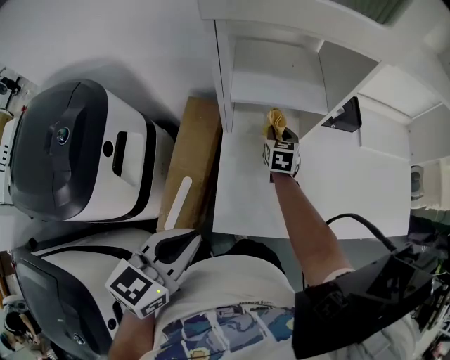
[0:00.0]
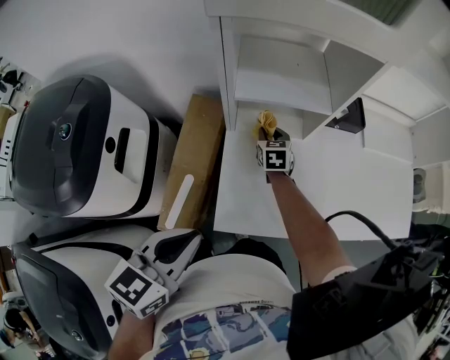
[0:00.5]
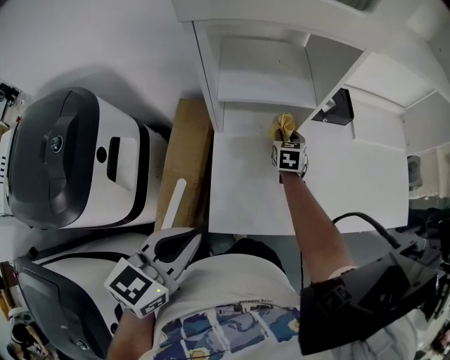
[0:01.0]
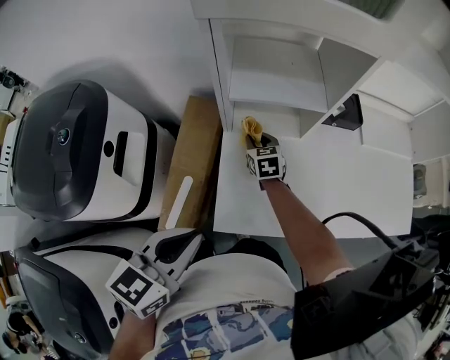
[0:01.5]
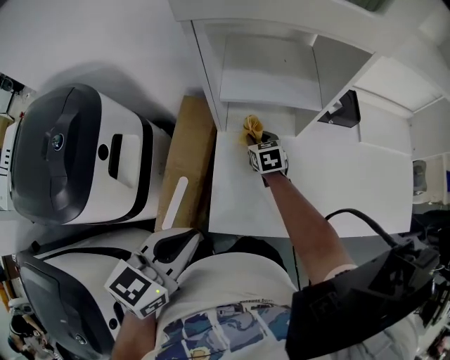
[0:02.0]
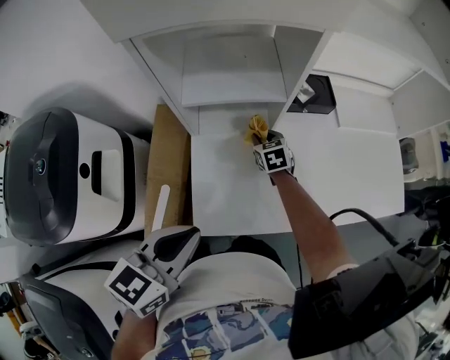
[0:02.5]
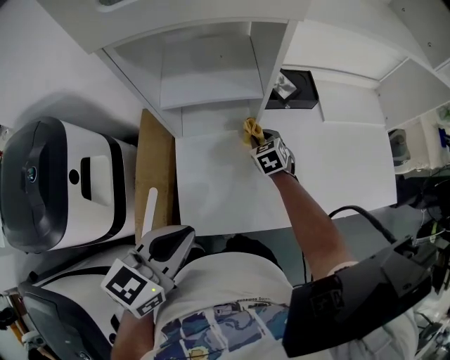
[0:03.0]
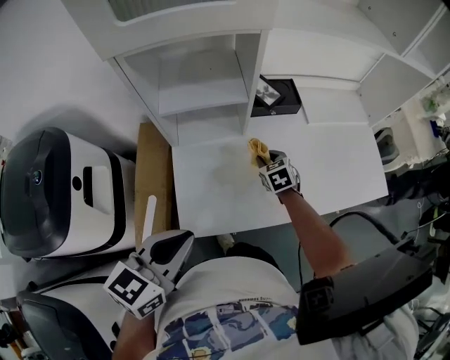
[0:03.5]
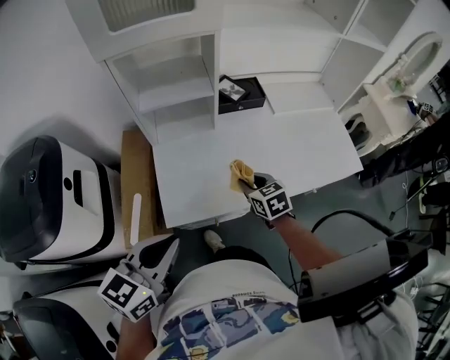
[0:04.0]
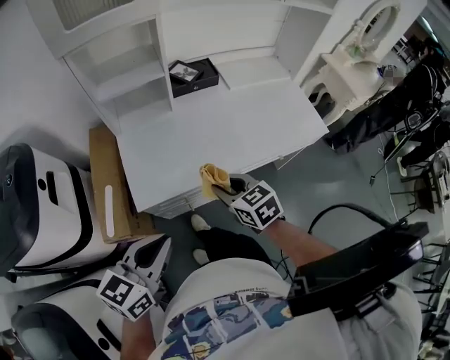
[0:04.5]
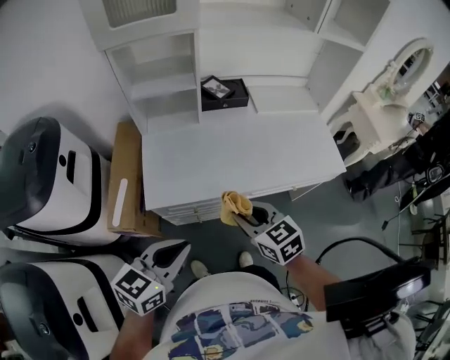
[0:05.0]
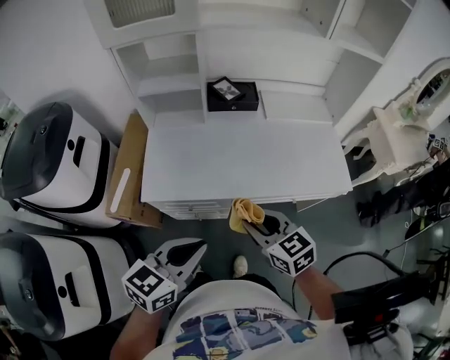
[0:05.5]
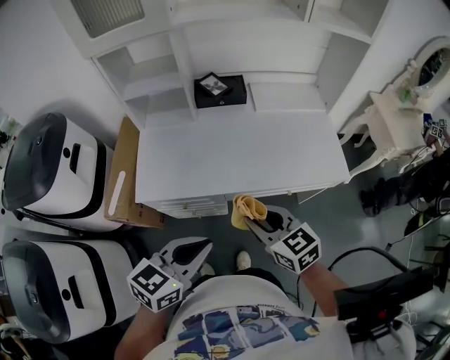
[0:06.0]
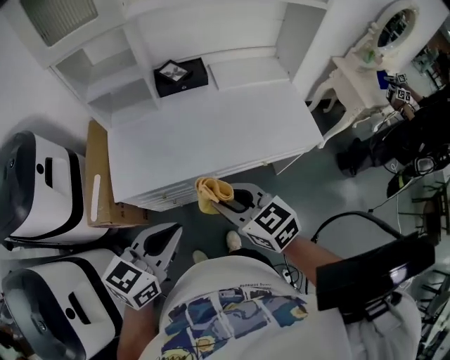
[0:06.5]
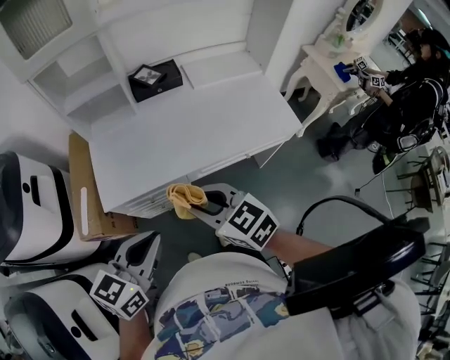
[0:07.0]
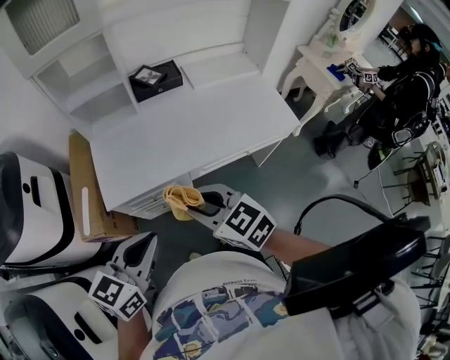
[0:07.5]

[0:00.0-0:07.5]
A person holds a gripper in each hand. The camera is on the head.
0:00.0 to 0:02.0: The right gripper moves left and right over about 15 cm, changing direction 2 times, and swivels approximately 20 degrees.
0:02.0 to 0:04.0: The right gripper travels to the right, backward and upward by about 35 cm, while the left gripper travels to the right and backward by roughly 15 cm.
0:04.0 to 0:05.5: The right gripper heads backward, to the right and upward, covering approximately 25 cm, and turns by roughly 20 degrees; the left gripper goes roughly 20 cm to the right.
0:05.5 to 0:07.5: The right gripper is displaced to the left and backward by about 10 cm. Meanwhile the left gripper goes roughly 5 cm to the left.

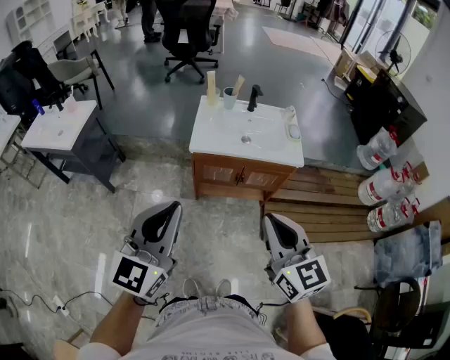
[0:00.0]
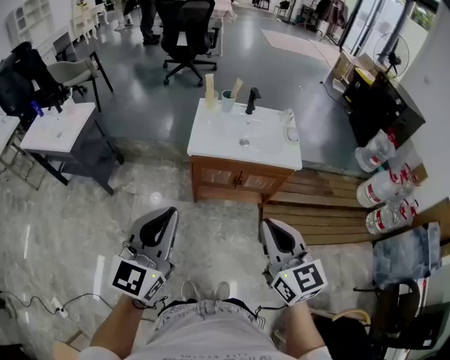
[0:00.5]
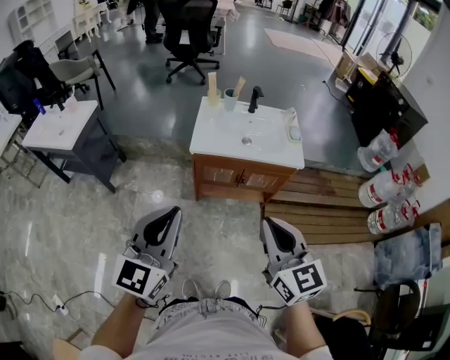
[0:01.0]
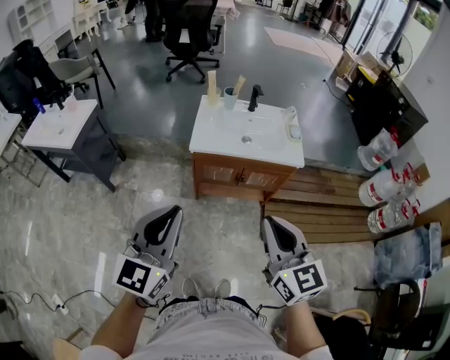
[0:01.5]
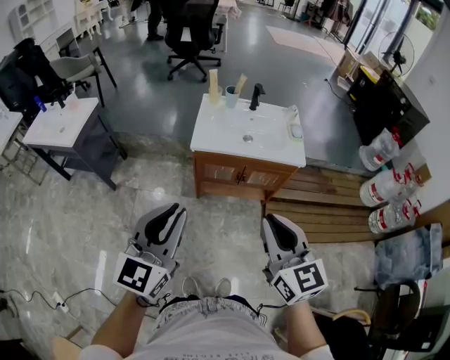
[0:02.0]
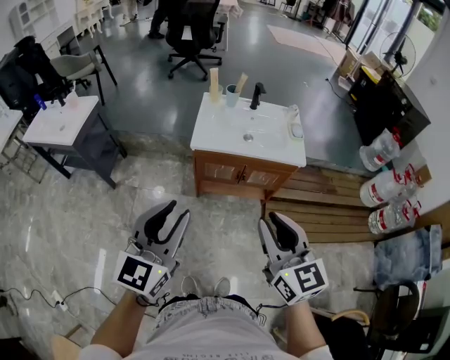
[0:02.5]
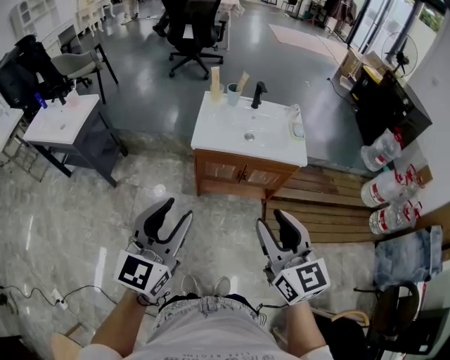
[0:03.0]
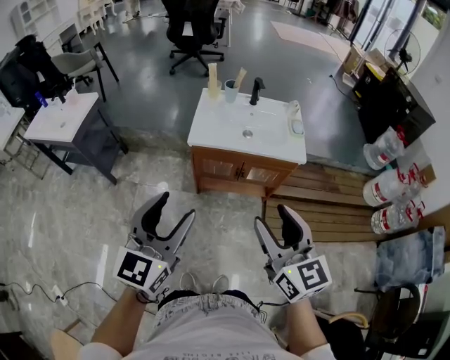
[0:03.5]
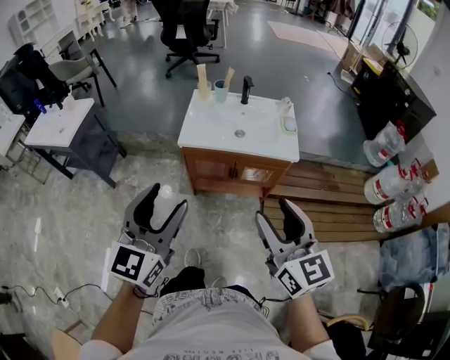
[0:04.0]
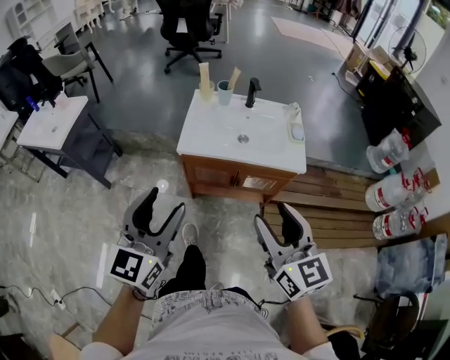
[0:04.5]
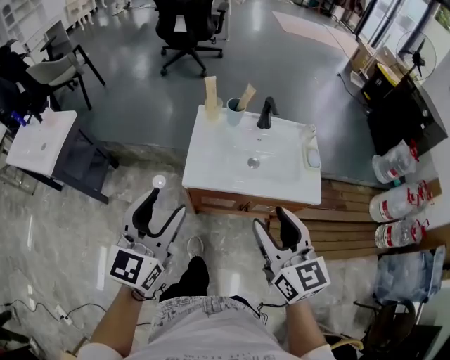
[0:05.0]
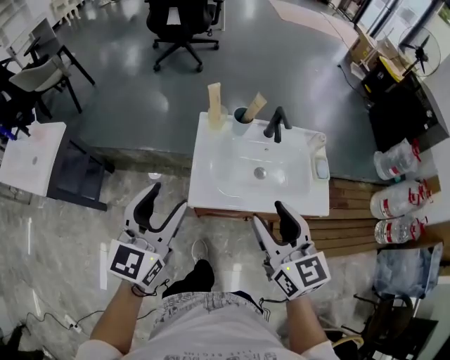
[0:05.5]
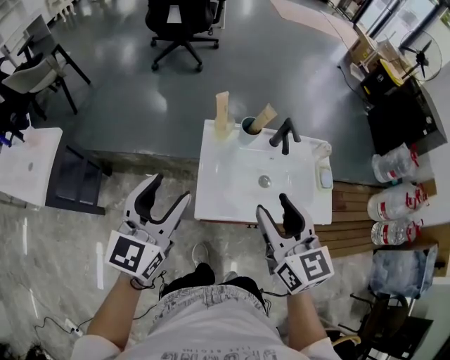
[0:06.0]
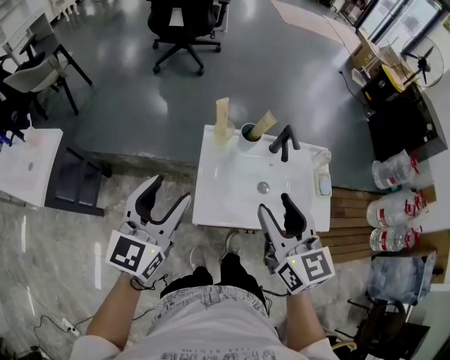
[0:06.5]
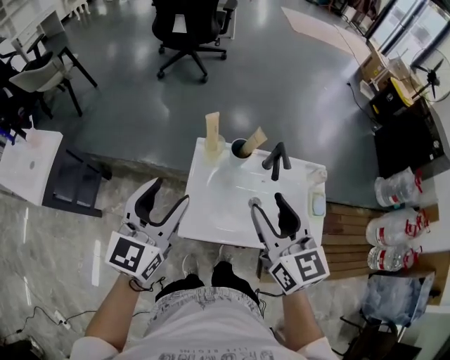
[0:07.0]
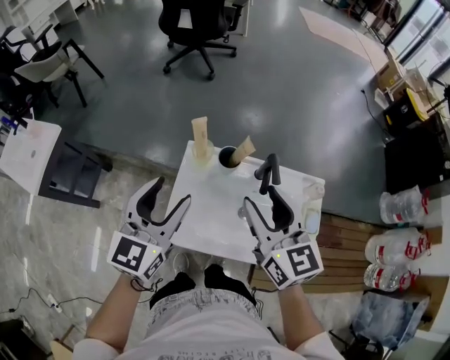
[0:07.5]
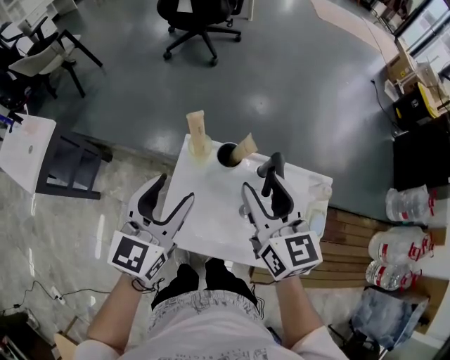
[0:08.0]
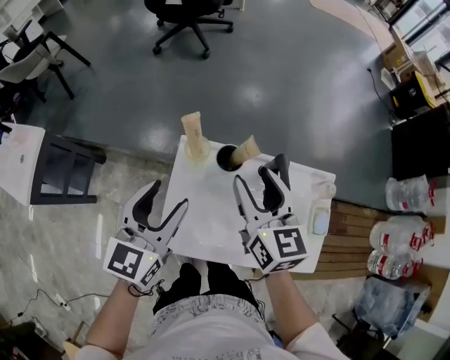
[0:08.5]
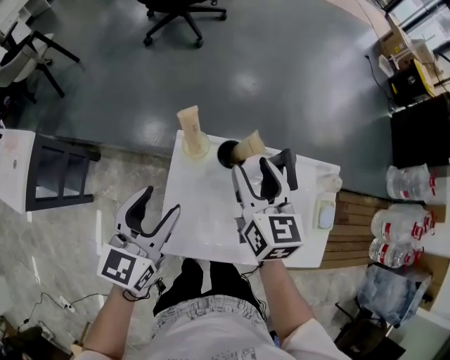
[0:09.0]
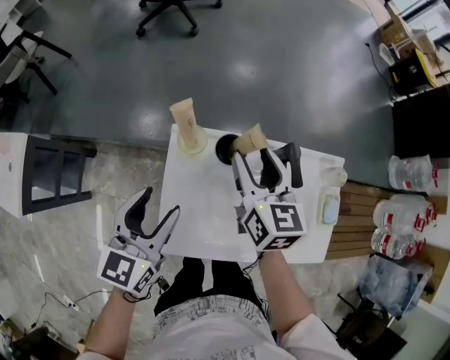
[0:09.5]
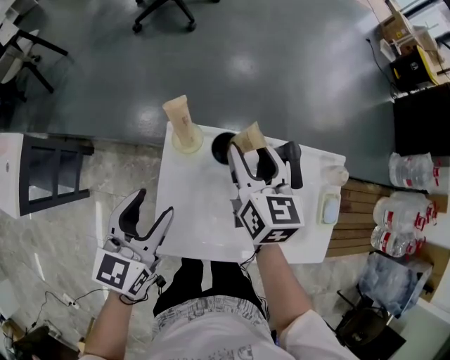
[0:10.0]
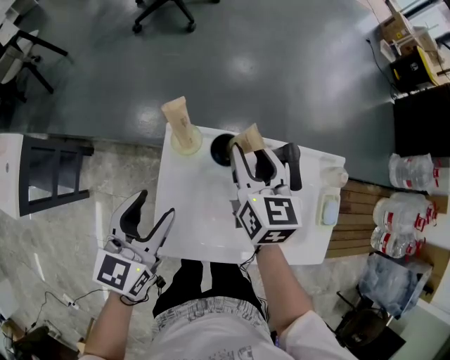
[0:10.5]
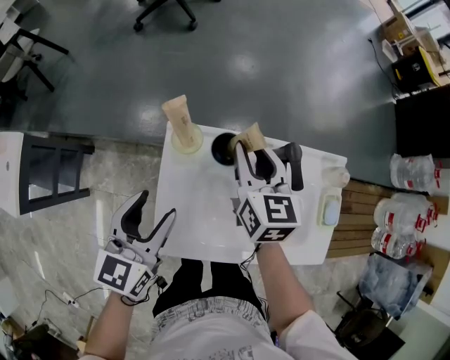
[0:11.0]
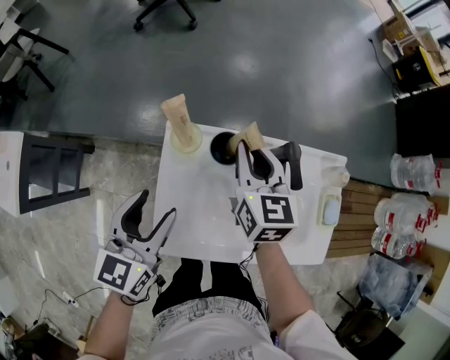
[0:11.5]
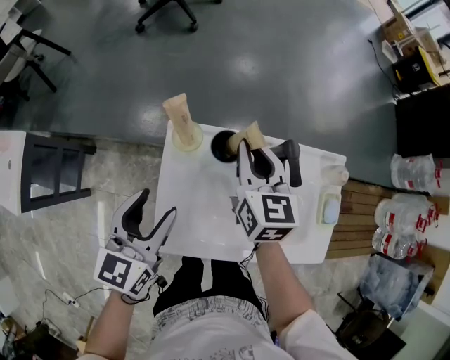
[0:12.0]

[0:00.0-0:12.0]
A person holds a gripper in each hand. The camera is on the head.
0:00.0 to 0:02.0: The grippers stay close to where they were, moving slightly.
0:02.0 to 0:04.0: Both grippers travel together to the right, roughly 5 cm. The right gripper opens up, while the left gripper opens up.
0:04.0 to 0:06.0: Both grippers are carried forward, approximately 40 cm.
0:06.0 to 0:08.0: The left gripper is displaced to the right and forward by approximately 20 cm. The right gripper is displaced forward and to the right by approximately 20 cm.
0:08.0 to 0:10.0: The right gripper shifts roughly 15 cm downward and forward, while the left gripper moves downward, roughly 10 cm.
0:10.0 to 0:12.0: The right gripper closes its fingers.

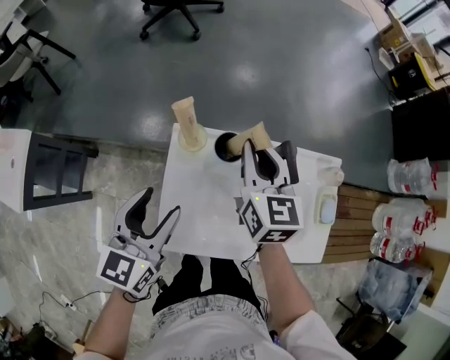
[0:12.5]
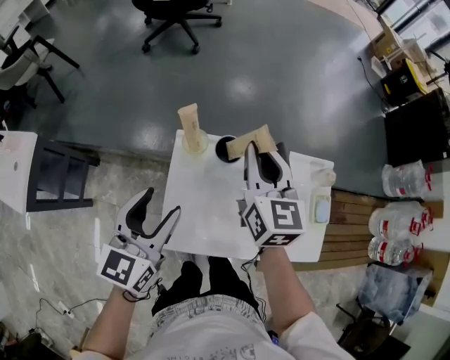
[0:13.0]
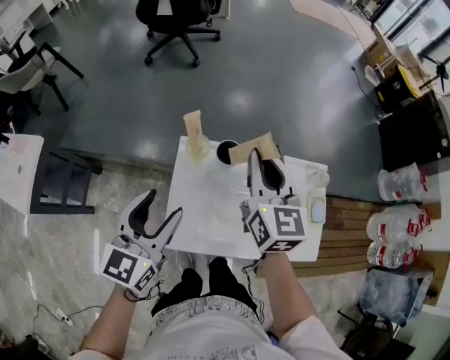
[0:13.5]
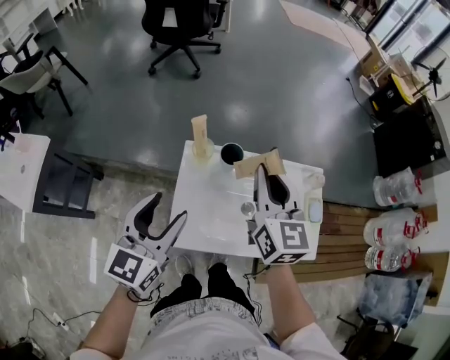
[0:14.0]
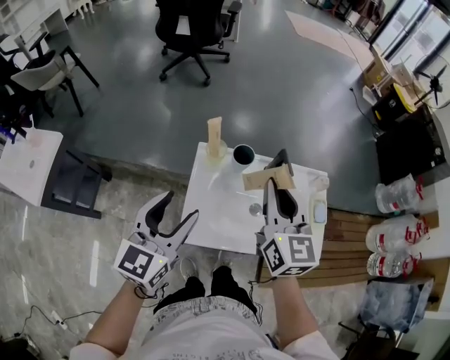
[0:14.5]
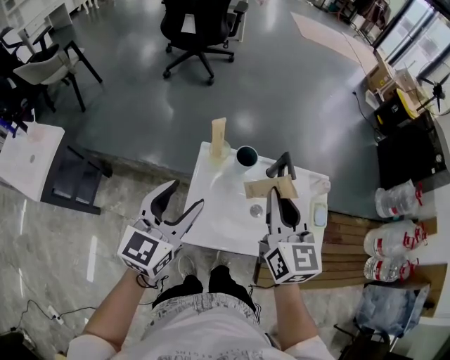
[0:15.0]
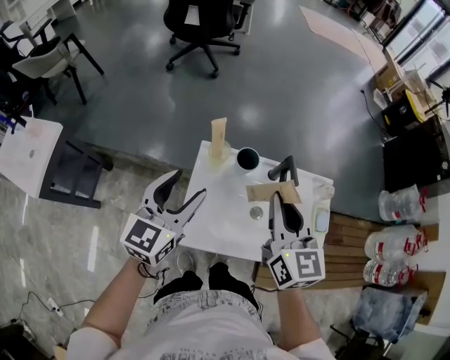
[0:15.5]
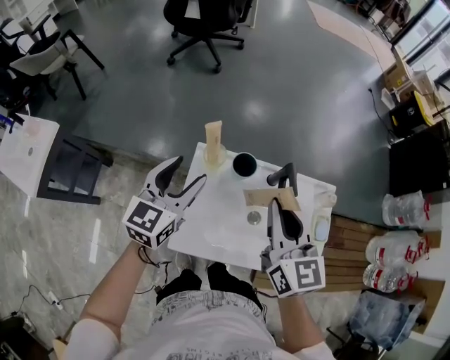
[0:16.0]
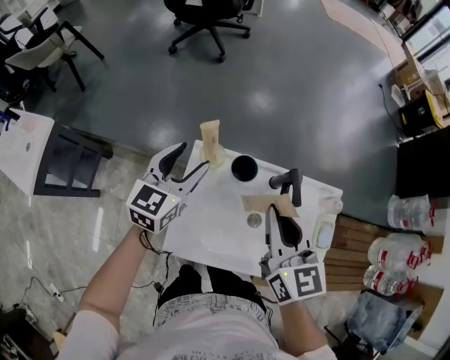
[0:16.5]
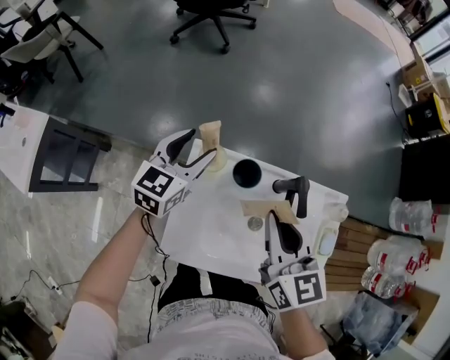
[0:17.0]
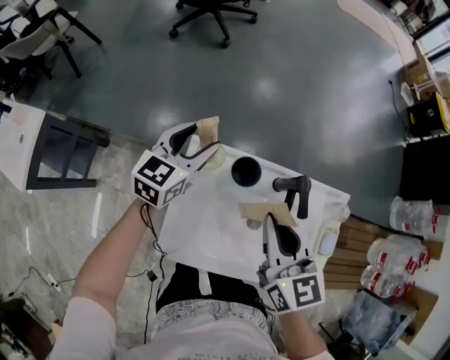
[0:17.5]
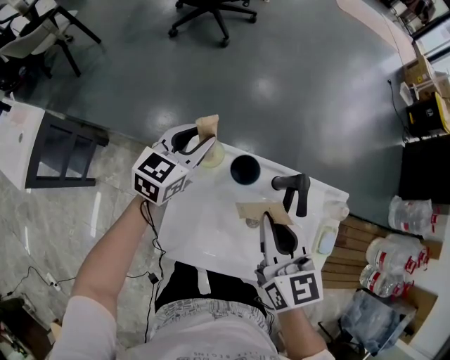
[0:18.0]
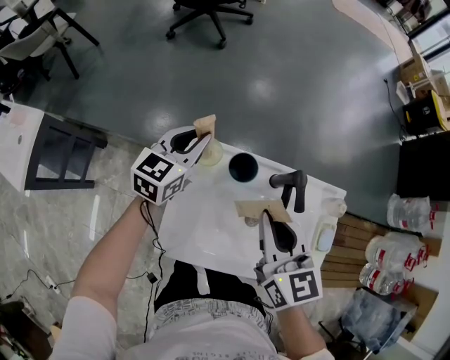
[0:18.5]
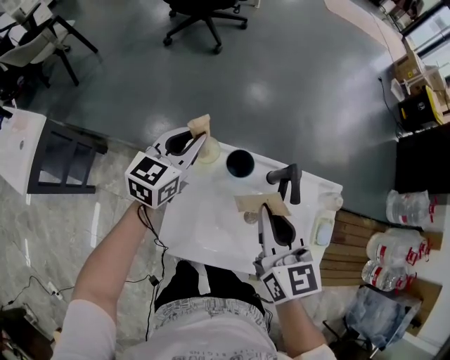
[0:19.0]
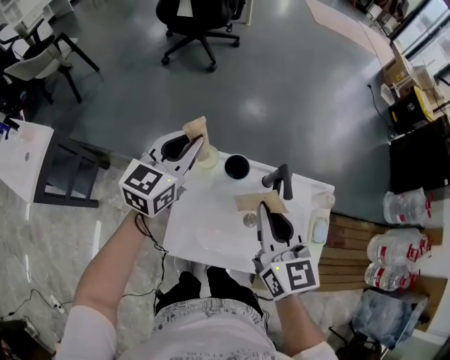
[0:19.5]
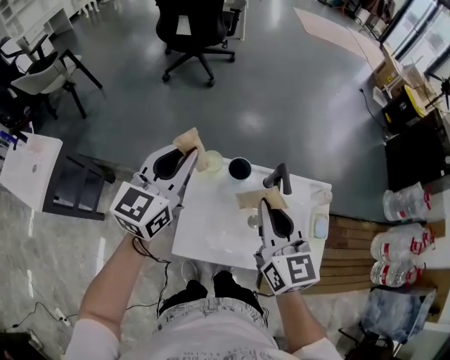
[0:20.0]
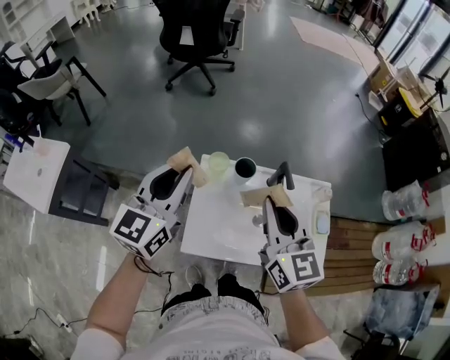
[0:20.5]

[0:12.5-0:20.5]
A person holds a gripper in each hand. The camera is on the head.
0:12.5 to 0:14.5: The left gripper goes approximately 10 cm upward and backward; the right gripper shifts about 20 cm backward and upward.
0:14.5 to 0:16.5: The right gripper moves downward, about 5 cm. The left gripper moves forward and downward, about 20 cm.
0:16.5 to 0:18.5: The left gripper shifts approximately 10 cm forward and downward, and closes up.
0:18.5 to 0:20.5: The right gripper goes approximately 15 cm upward and backward; the left gripper shifts about 25 cm upward and backward.
